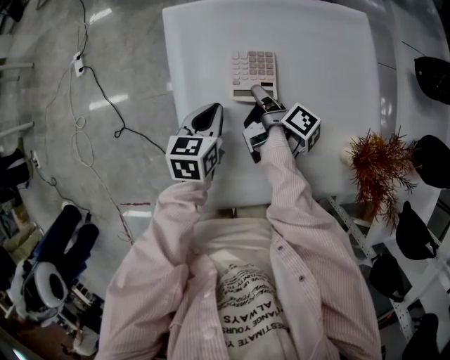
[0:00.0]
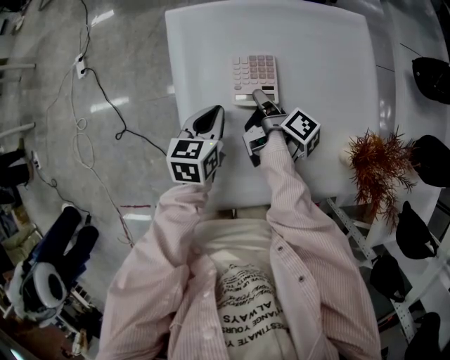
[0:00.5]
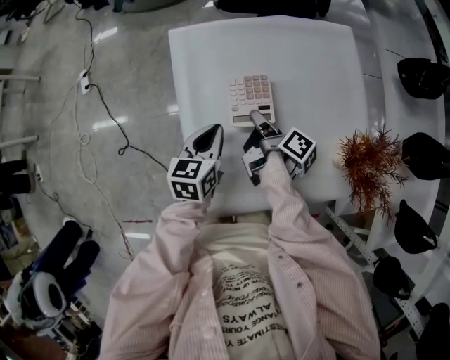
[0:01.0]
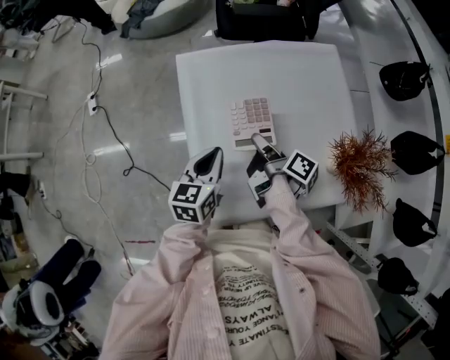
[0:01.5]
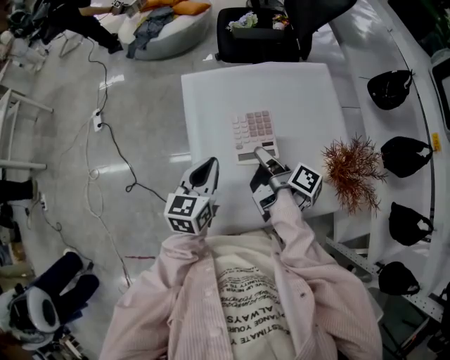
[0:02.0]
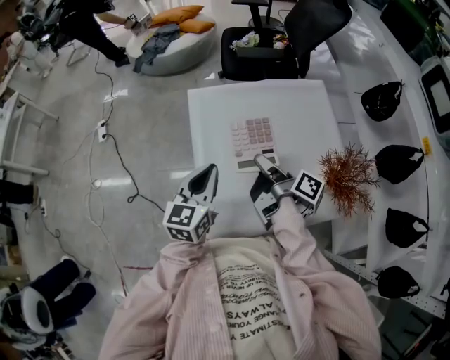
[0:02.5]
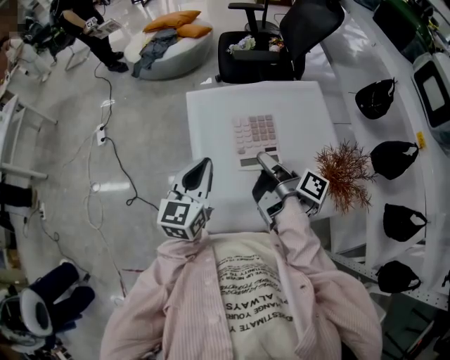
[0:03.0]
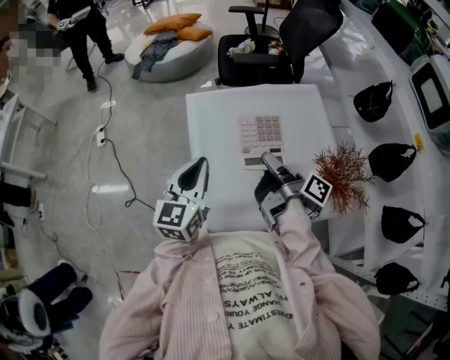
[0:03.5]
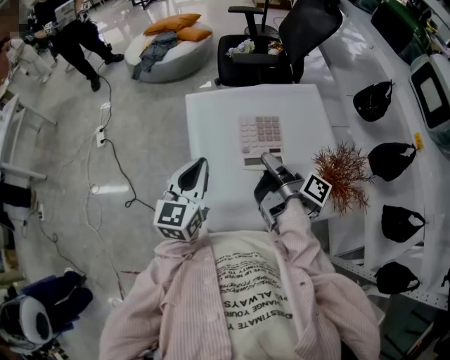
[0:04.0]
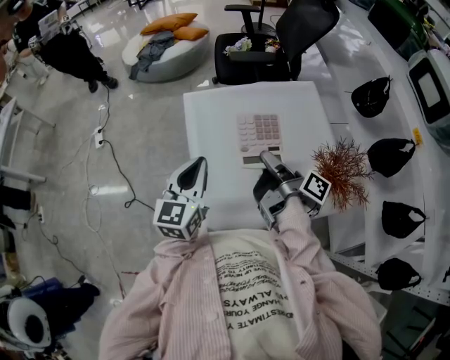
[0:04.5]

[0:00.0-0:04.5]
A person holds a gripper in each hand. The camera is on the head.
0:00.0 to 0:02.0: The left gripper goes some 15 cm upward.
0:02.0 to 0:04.5: The left gripper travels upward by roughly 10 cm.

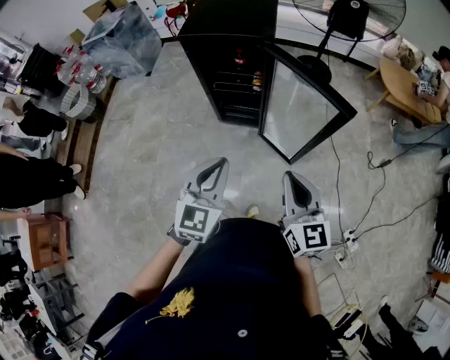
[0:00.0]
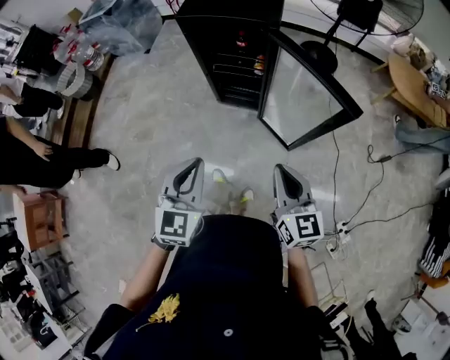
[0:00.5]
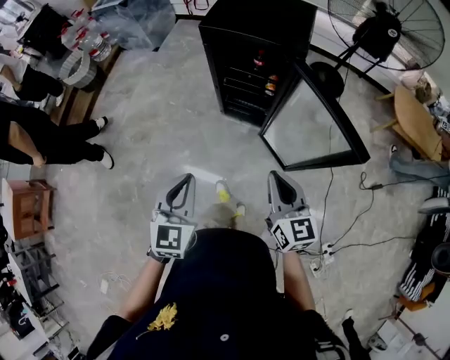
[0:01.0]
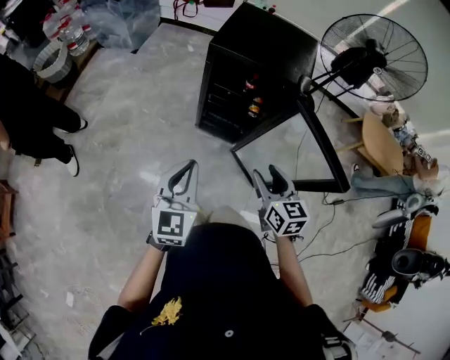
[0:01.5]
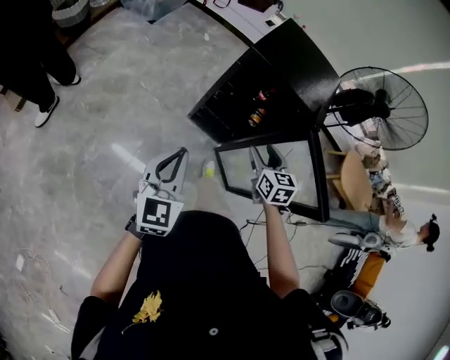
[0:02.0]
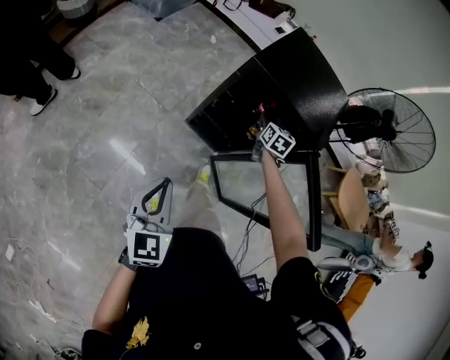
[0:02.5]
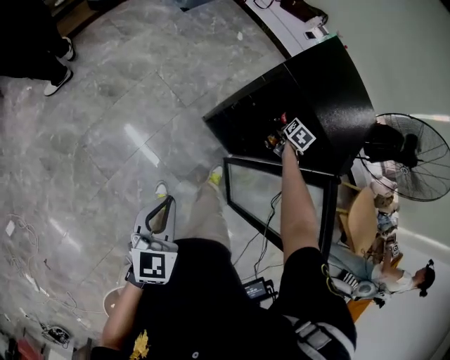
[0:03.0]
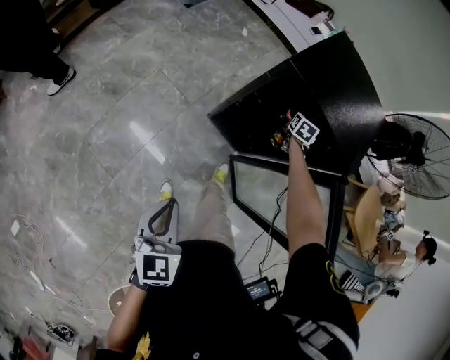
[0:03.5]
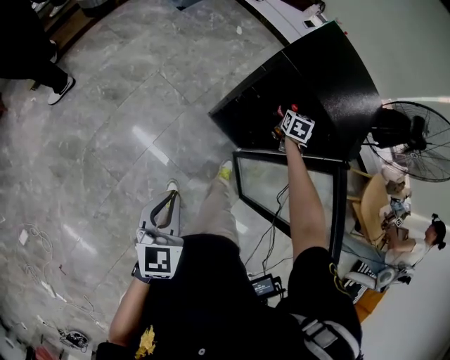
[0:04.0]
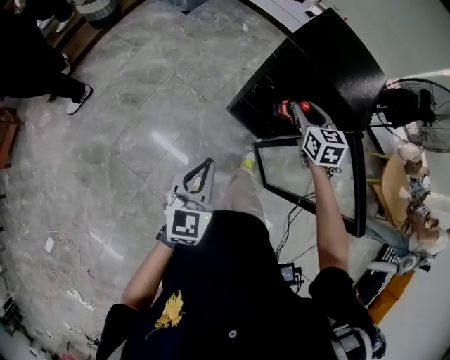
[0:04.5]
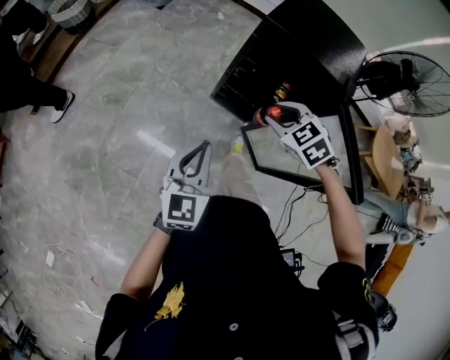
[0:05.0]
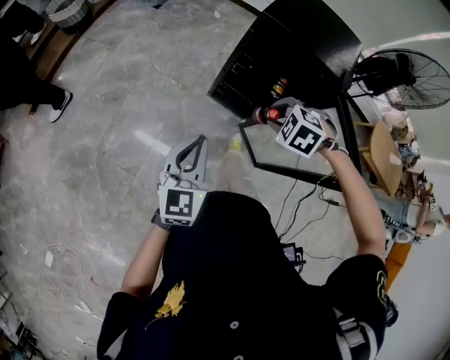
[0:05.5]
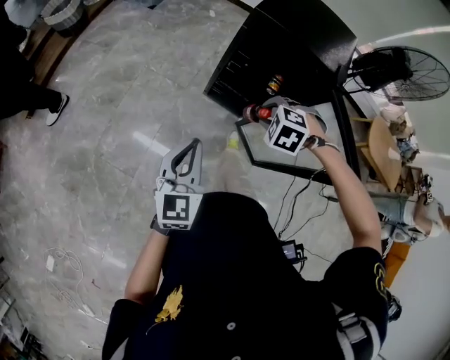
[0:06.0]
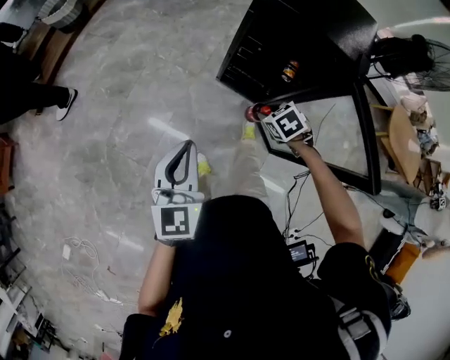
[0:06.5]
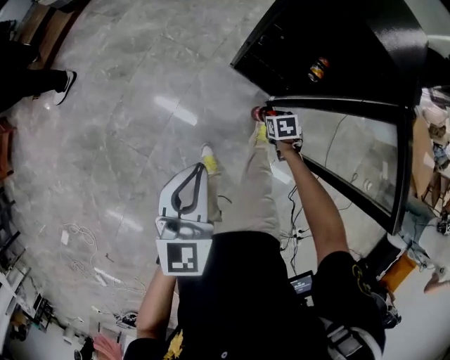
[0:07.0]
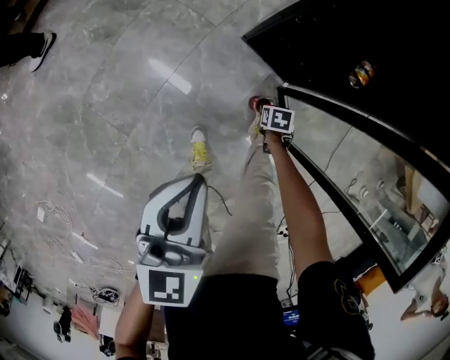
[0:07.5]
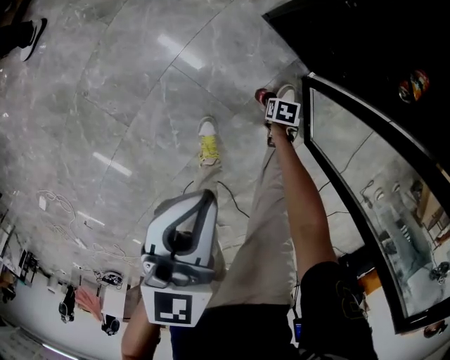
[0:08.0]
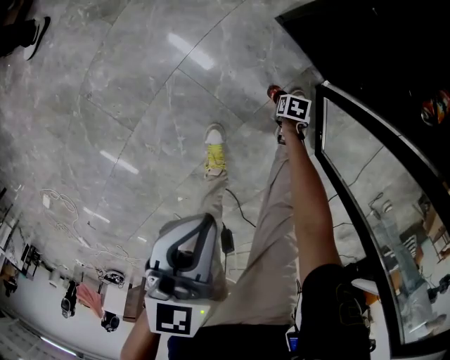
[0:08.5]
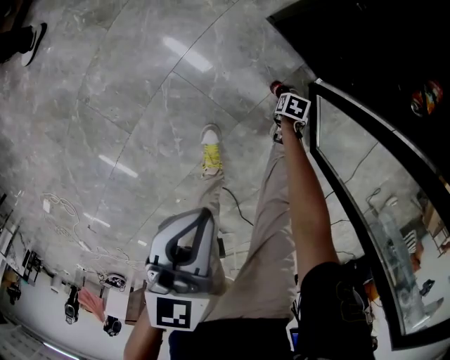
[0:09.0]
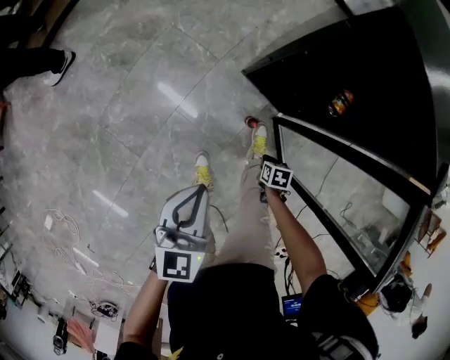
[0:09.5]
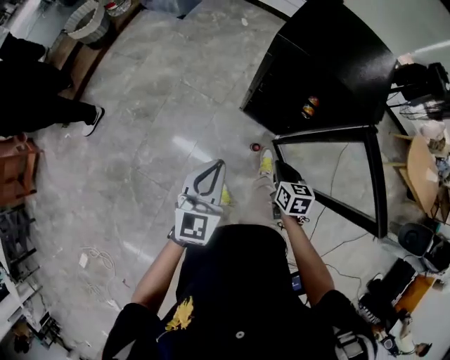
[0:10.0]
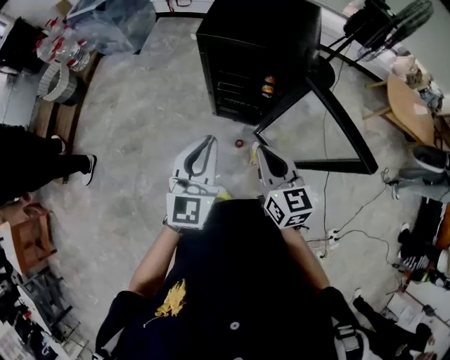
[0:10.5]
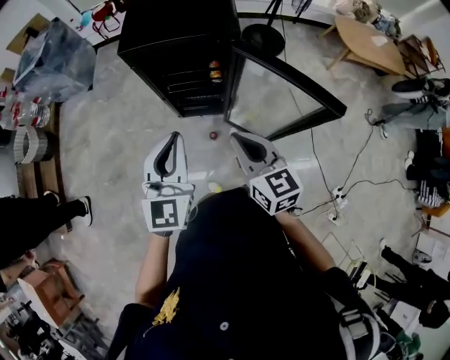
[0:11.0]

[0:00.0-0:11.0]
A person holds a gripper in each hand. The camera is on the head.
0:00.0 to 0:02.0: The right gripper goes about 35 cm forward and to the left, changes its angle by about 30 degrees, and opens its fingers; the left gripper shifts some 30 cm to the left and forward, and turns by approximately 30 degrees.
0:02.0 to 0:03.5: The left gripper moves downward, about 10 cm, and changes its angle by approximately 20 degrees; the right gripper is displaced forward and downward by approximately 40 cm, and turns by roughly 20 degrees.
0:03.5 to 0:05.5: The right gripper moves some 40 cm, and rolls counterclockwise, seen from behind, by roughly 70 degrees. The left gripper travels upward by roughly 5 cm, and rotates approximately 20 degrees.
0:05.5 to 0:07.5: The right gripper heads downward, covering roughly 60 cm, and twists some 70 degrees clockwise, seen from behind. The left gripper travels downward by about 25 cm.
0:07.5 to 0:09.0: Both grippers travel together downward, about 20 cm. The right gripper closes.
0:09.0 to 0:11.0: The left gripper heads upward, covering approximately 50 cm, and angles its fingers upward, by roughly 30 degrees. The right gripper travels upward by some 90 cm, and points its fingers roughly 70 degrees further upward.

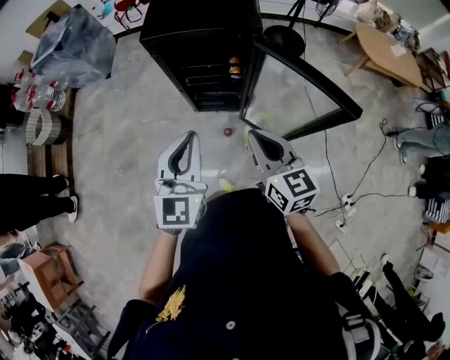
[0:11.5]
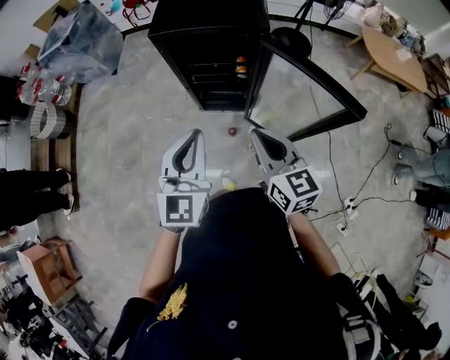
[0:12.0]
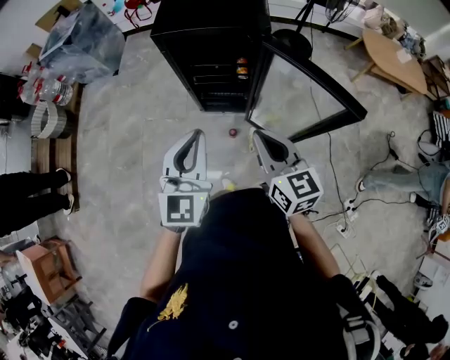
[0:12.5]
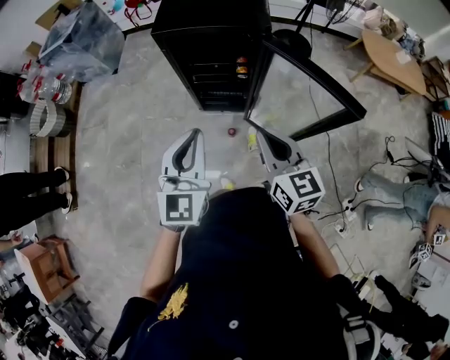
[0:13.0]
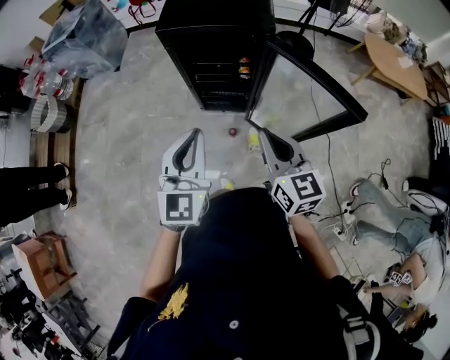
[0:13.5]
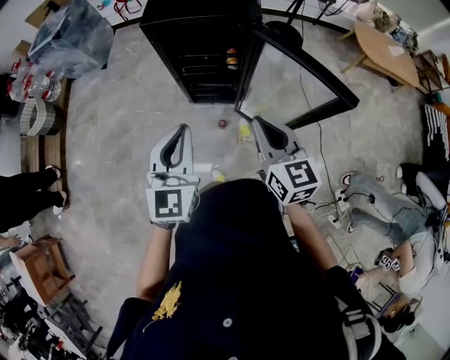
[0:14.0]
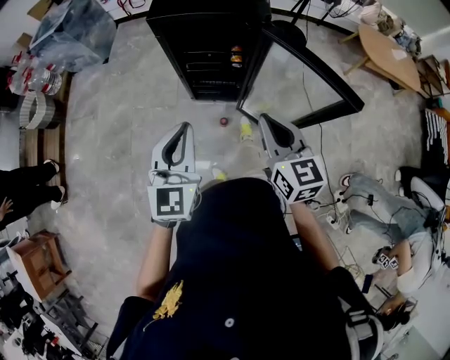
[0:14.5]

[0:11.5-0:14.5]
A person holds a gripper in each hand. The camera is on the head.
0:11.5 to 0:14.5: The grippers stay close to where they were, moving slightly.

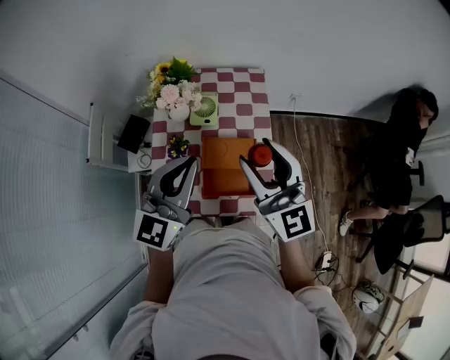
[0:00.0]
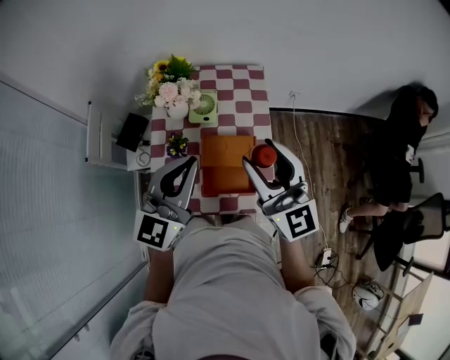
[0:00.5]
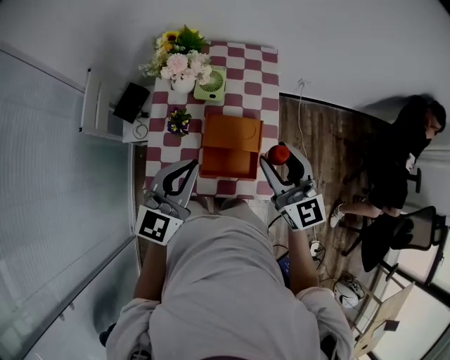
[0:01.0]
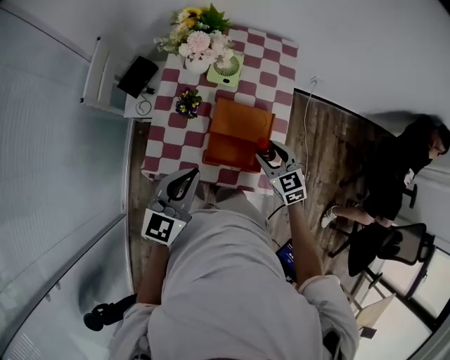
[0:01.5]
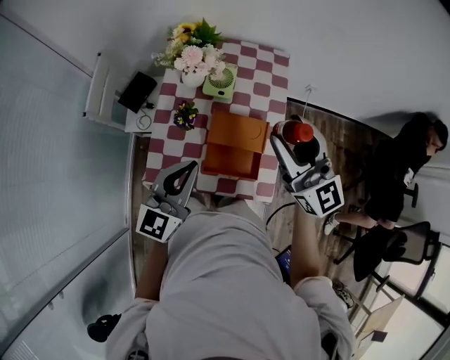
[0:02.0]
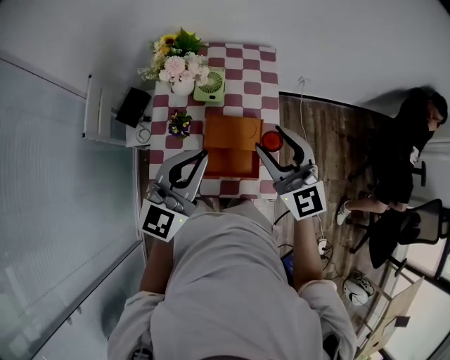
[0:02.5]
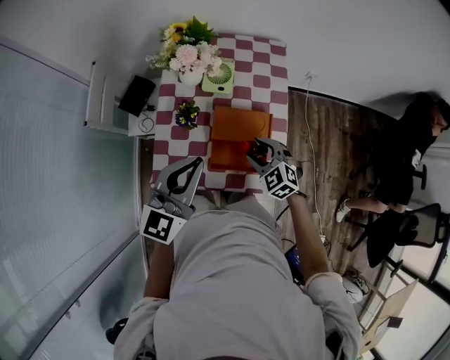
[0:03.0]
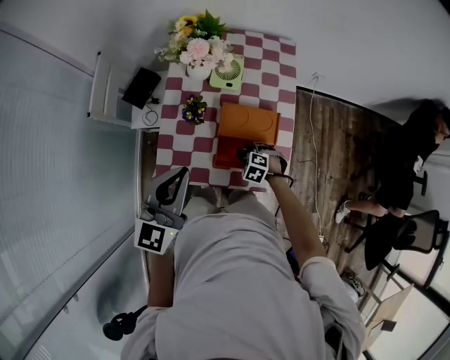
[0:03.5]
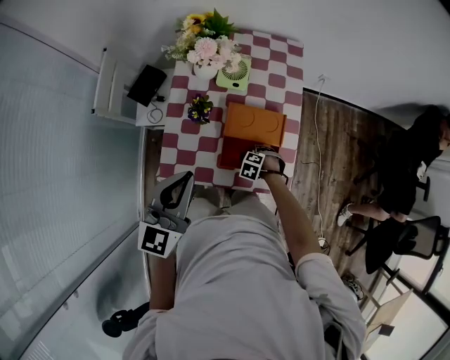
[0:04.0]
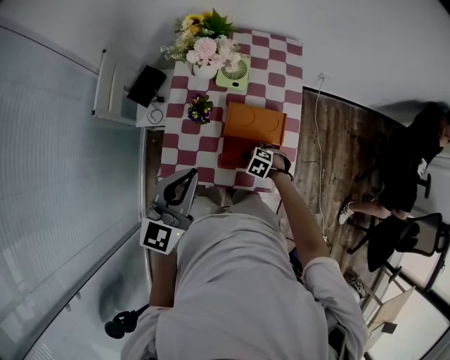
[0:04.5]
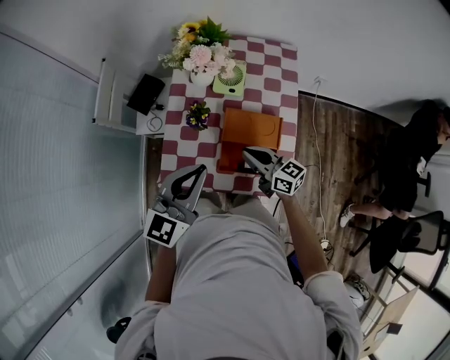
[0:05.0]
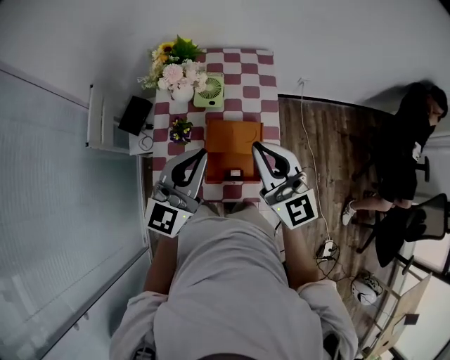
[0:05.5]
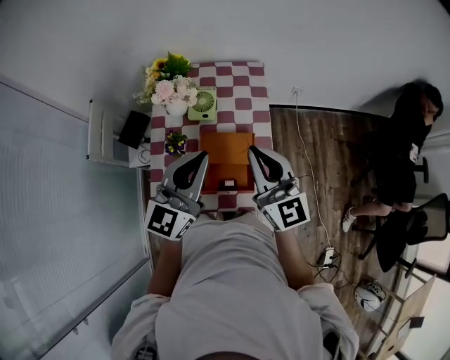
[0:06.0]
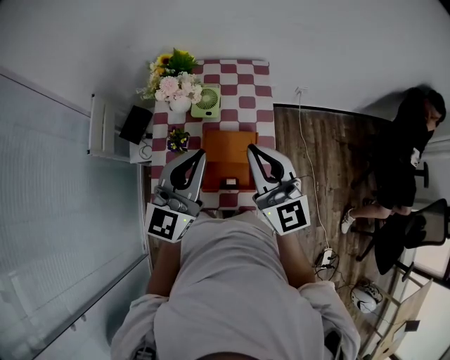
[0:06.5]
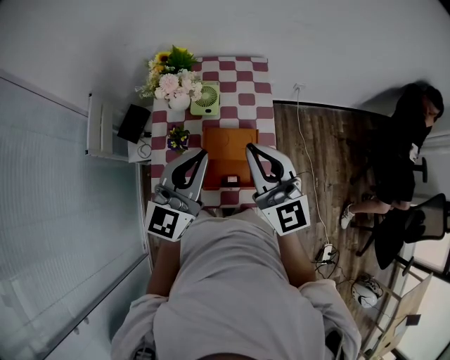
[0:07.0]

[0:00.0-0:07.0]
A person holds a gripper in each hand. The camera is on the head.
0:00.0 to 0:02.0: The right gripper moves approximately 30 cm downward and comes back, while the left gripper is displaced downward and backward by roughly 10 cm.
0:02.0 to 0:03.5: The right gripper is displaced downward by some 50 cm, and angles its fingers downward, by some 80 degrees.
0:03.5 to 0:05.0: The right gripper moves upward, approximately 20 cm, angles its fingers upward, by roughly 70 degrees, and closes.
0:05.0 to 0:07.0: The left gripper goes some 10 cm to the right, upward and forward. The right gripper heads upward, covering about 25 cm, and swivels some 50 degrees.
